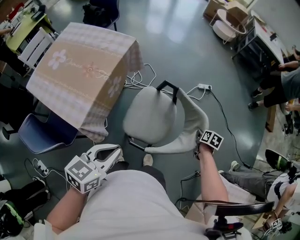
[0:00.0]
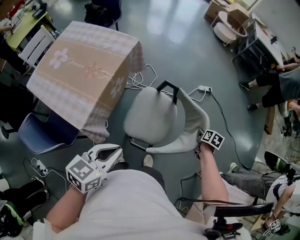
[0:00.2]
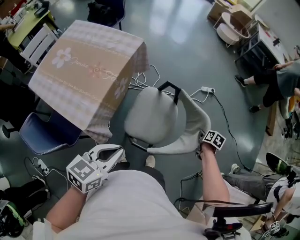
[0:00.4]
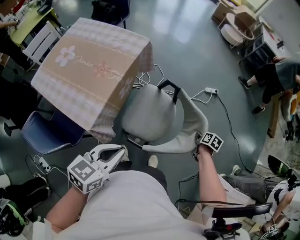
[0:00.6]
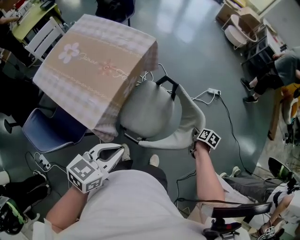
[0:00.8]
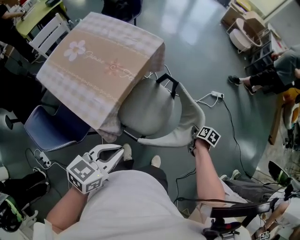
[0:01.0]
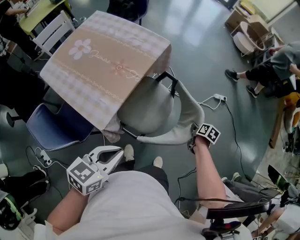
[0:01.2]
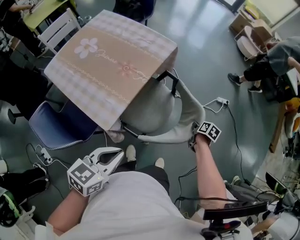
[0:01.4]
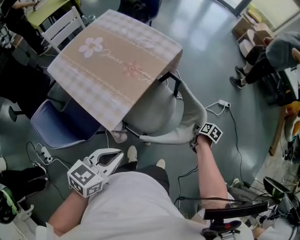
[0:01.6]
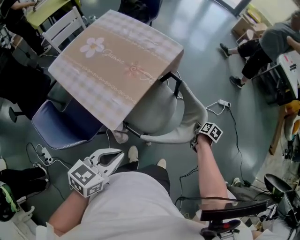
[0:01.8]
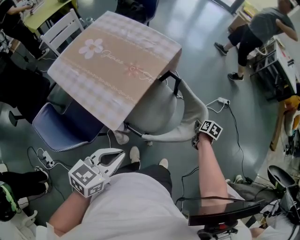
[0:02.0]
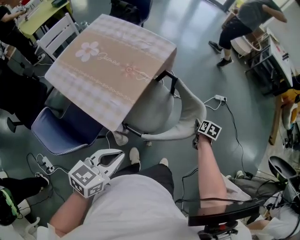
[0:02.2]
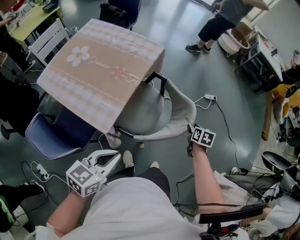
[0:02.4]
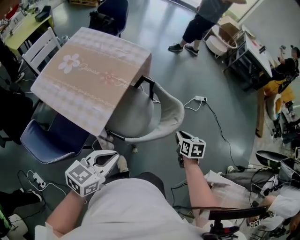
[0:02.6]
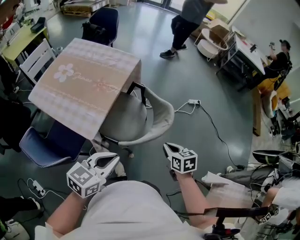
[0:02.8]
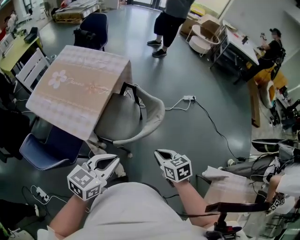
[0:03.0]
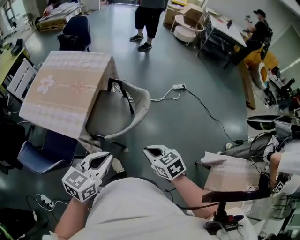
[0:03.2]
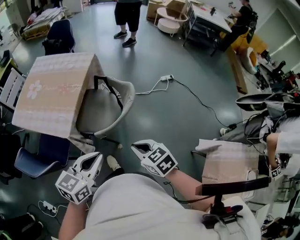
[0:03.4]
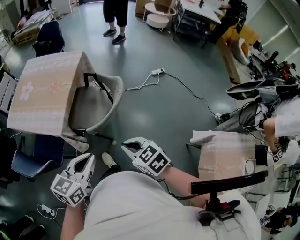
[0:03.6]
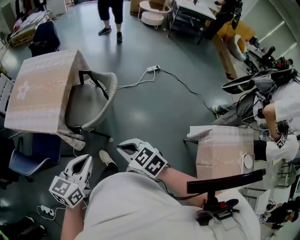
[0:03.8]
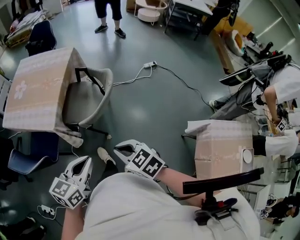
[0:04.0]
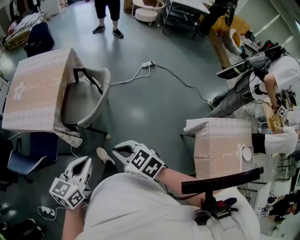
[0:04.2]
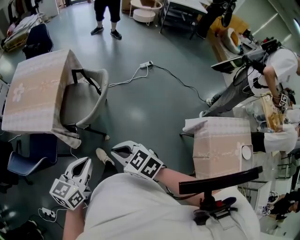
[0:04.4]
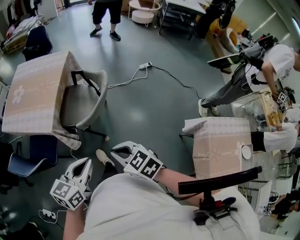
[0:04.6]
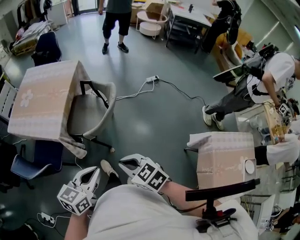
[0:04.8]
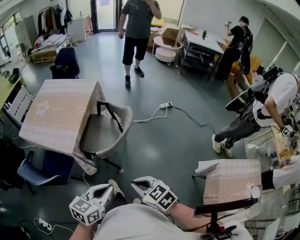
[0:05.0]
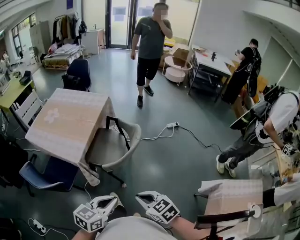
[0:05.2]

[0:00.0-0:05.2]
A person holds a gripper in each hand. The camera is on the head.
0:00.0 to 0:01.8: The grippers both shift to the left by some 25 cm.
0:01.8 to 0:03.4: The left gripper shifts approximately 20 cm to the right and backward, while the right gripper goes about 40 cm backward and upward, twists about 50 degrees counterclockwise, seen from behind, and opens and closes again.
0:03.4 to 0:05.2: The two grippers go about 15 cm backward.

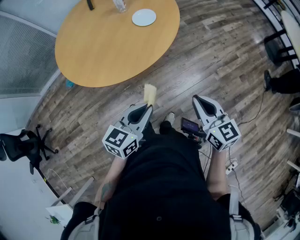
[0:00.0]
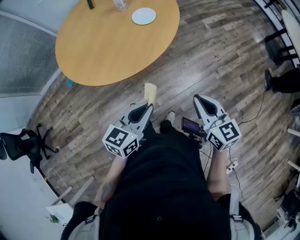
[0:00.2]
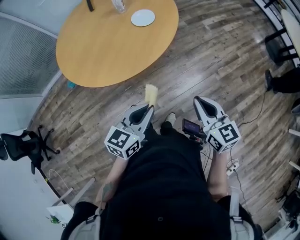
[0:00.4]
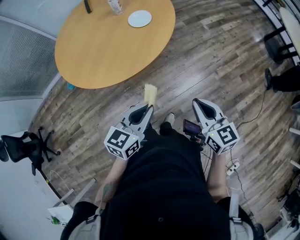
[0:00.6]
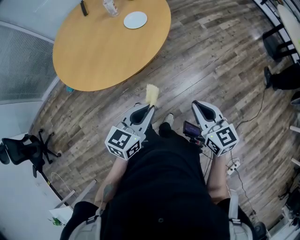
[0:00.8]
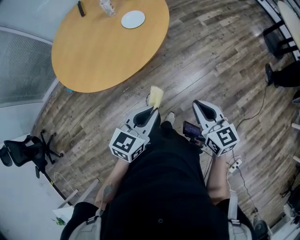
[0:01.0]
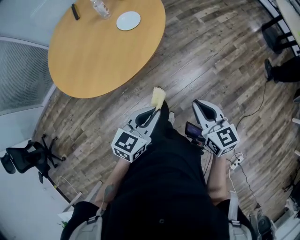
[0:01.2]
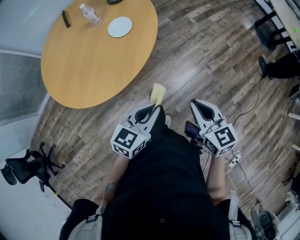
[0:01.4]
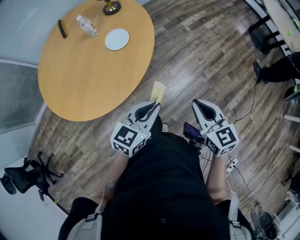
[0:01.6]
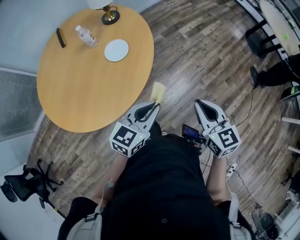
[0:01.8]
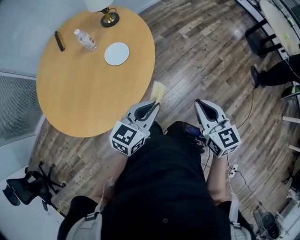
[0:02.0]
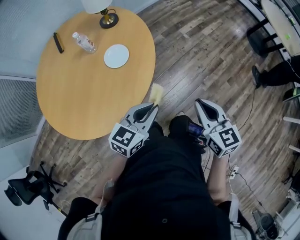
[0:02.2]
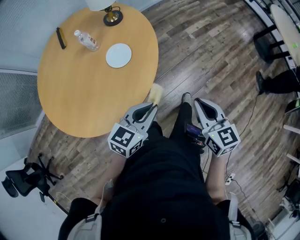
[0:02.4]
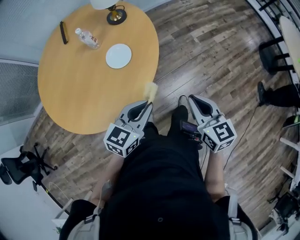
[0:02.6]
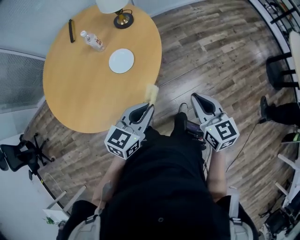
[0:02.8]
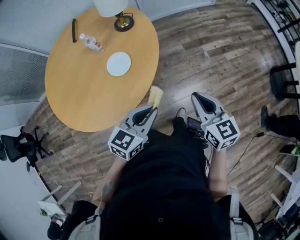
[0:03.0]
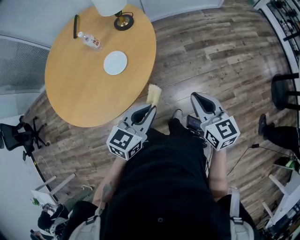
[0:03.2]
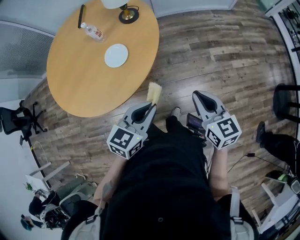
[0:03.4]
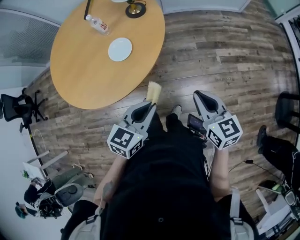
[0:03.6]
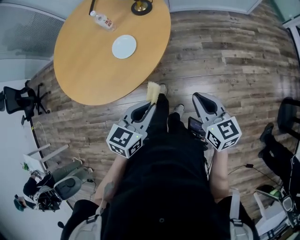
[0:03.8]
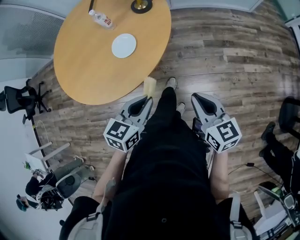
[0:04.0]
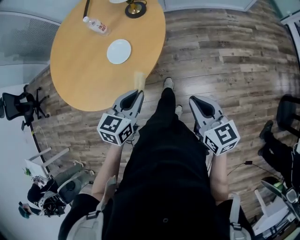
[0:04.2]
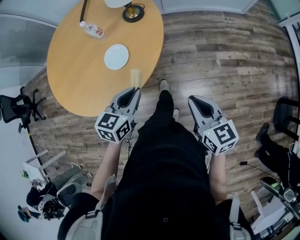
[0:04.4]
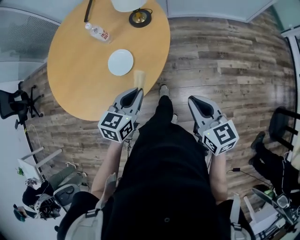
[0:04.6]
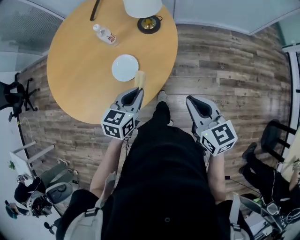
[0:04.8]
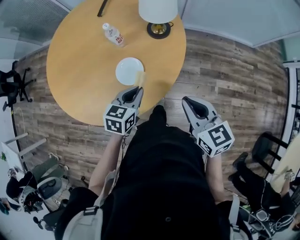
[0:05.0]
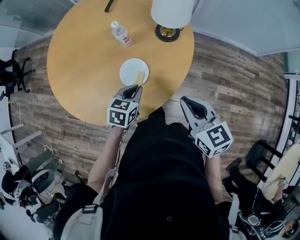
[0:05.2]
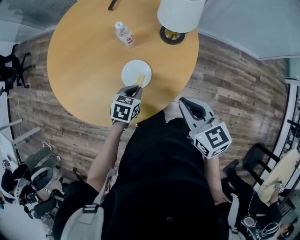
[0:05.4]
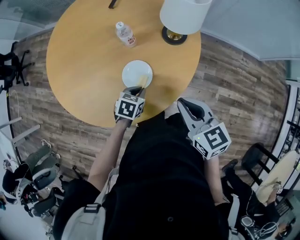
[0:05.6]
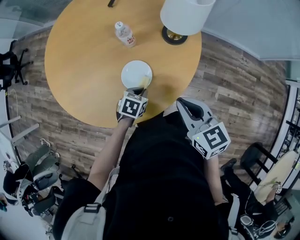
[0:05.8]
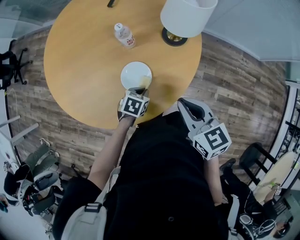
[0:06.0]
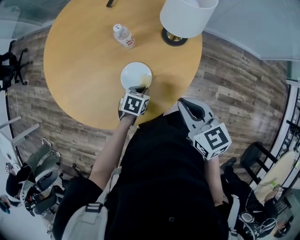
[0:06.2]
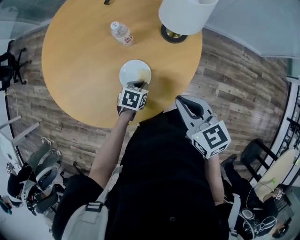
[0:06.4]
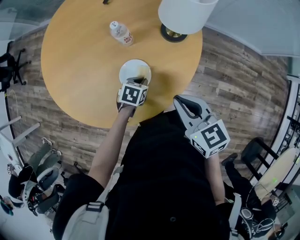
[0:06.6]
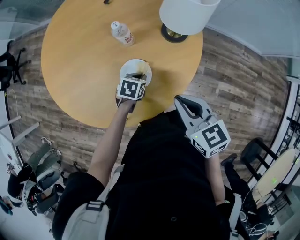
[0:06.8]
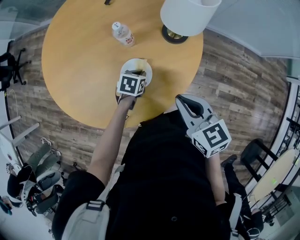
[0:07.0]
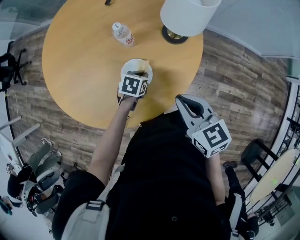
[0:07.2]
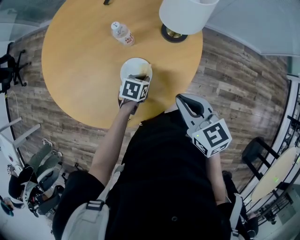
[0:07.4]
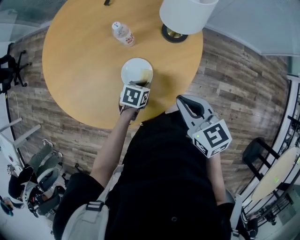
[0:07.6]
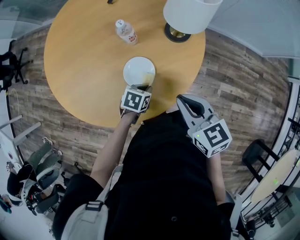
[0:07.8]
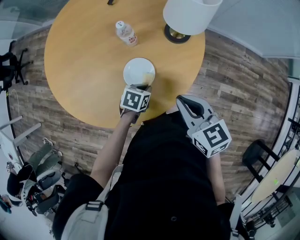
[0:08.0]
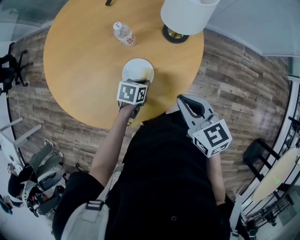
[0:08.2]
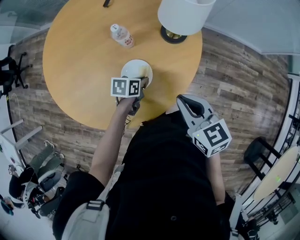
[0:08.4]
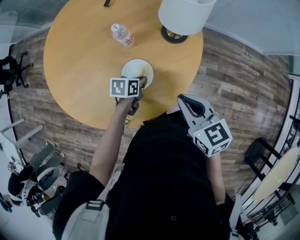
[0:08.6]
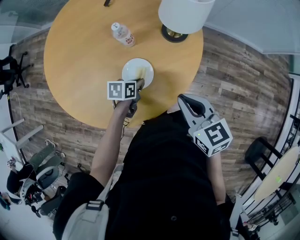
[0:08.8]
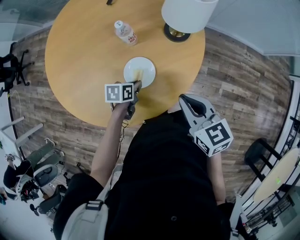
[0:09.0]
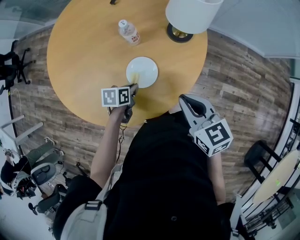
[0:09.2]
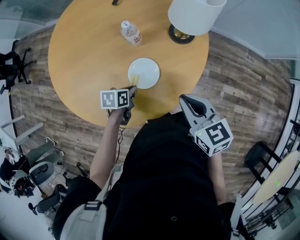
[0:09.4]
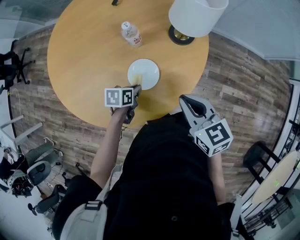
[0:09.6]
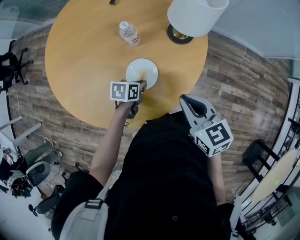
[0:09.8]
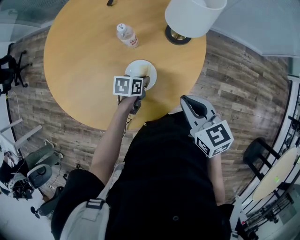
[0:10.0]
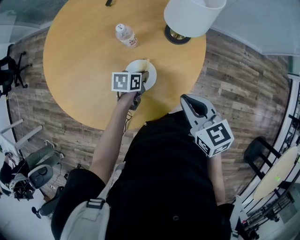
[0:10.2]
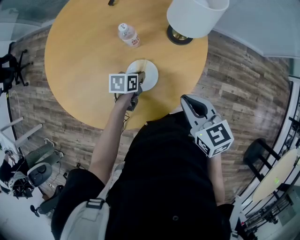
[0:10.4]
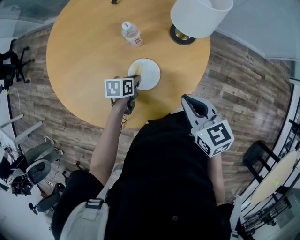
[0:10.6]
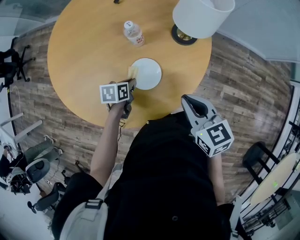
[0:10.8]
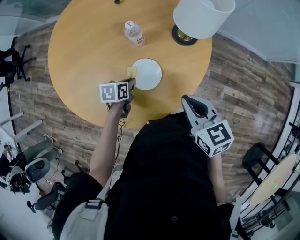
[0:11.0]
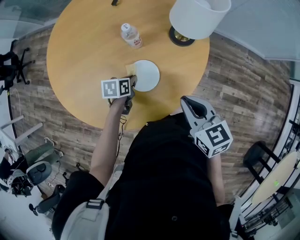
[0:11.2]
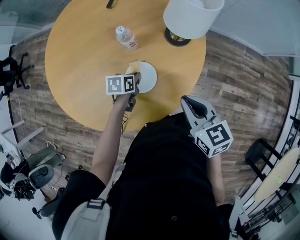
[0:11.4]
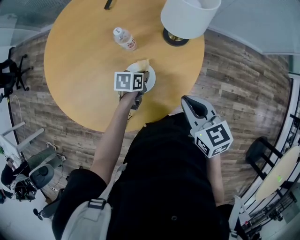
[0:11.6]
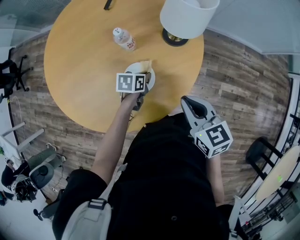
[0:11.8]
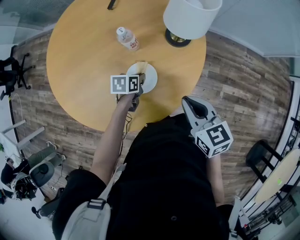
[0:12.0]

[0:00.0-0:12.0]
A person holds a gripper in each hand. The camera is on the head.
0:00.0 to 0:01.6: Both grippers travel together forward and to the right, about 15 cm.
0:01.6 to 0:03.0: The two grippers go roughly 25 cm forward.
0:03.0 to 0:04.4: The right gripper goes approximately 10 cm forward and to the right, and changes its angle by roughly 20 degrees; the left gripper is displaced forward by about 15 cm, and swivels about 30 degrees.
0:04.4 to 0:06.0: The right gripper is displaced forward and to the left by some 30 cm, and swivels some 20 degrees. The left gripper heads downward, forward and to the left, covering approximately 30 cm, and angles its fingers downward, by approximately 30 degrees.
0:06.0 to 0:07.6: The left gripper goes forward and returns, about 10 cm each way.
0:07.6 to 0:09.0: The left gripper shifts about 5 cm to the left.
0:09.0 to 0:10.4: The left gripper travels forward by roughly 5 cm.
0:10.4 to 0:12.0: The left gripper goes to the left and returns, approximately 5 cm each way.

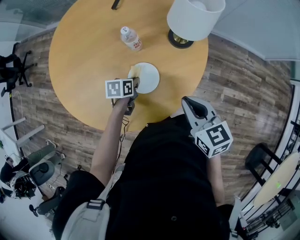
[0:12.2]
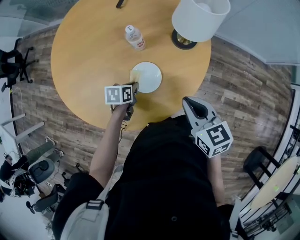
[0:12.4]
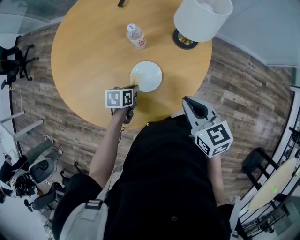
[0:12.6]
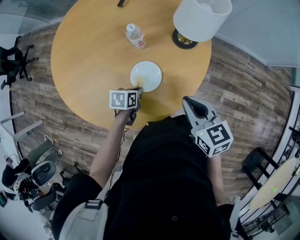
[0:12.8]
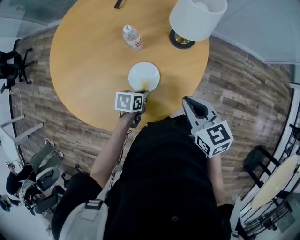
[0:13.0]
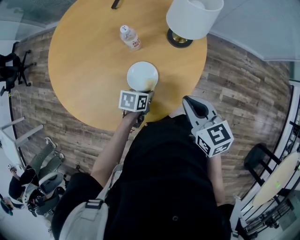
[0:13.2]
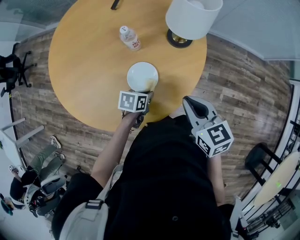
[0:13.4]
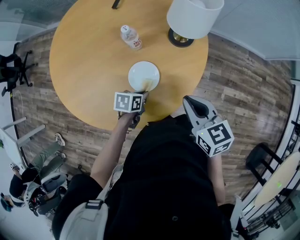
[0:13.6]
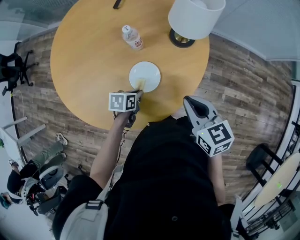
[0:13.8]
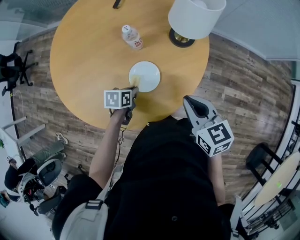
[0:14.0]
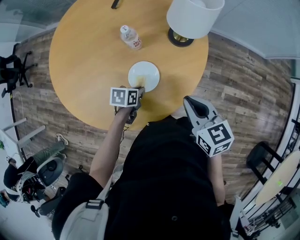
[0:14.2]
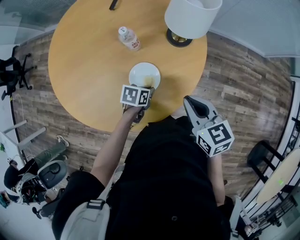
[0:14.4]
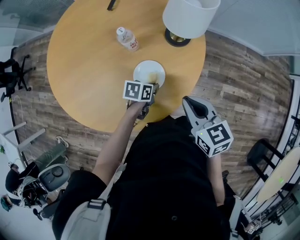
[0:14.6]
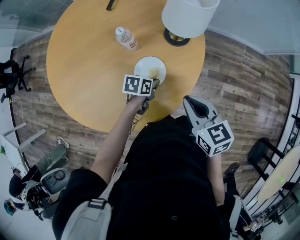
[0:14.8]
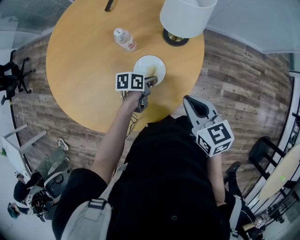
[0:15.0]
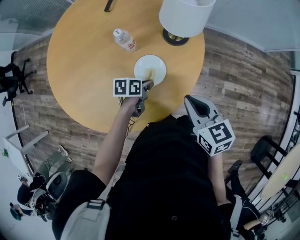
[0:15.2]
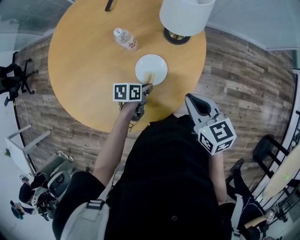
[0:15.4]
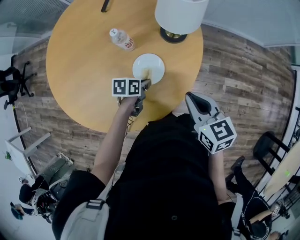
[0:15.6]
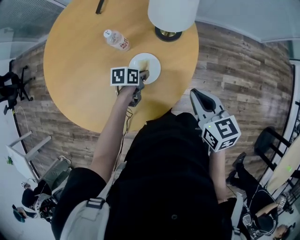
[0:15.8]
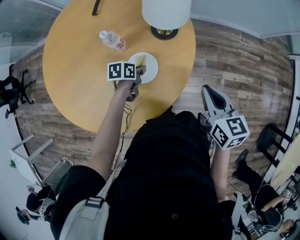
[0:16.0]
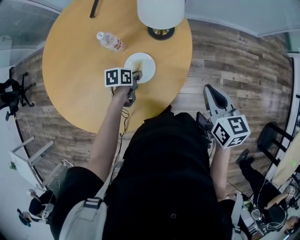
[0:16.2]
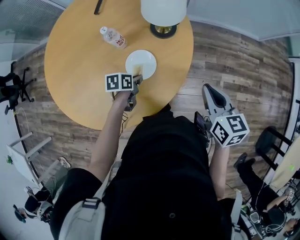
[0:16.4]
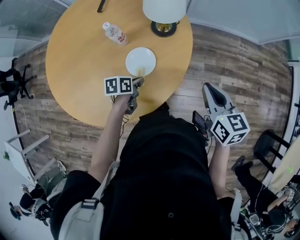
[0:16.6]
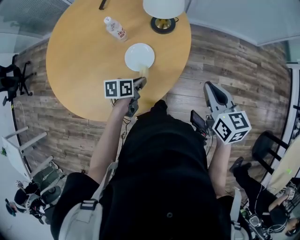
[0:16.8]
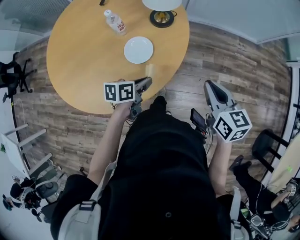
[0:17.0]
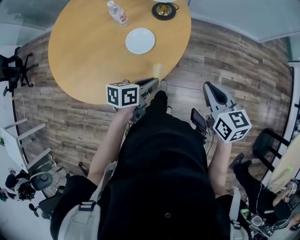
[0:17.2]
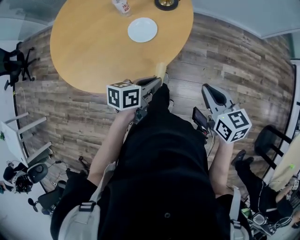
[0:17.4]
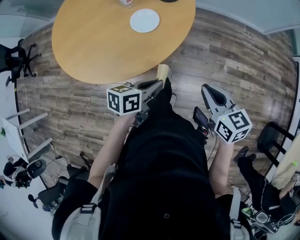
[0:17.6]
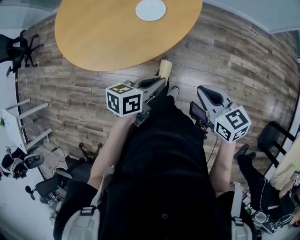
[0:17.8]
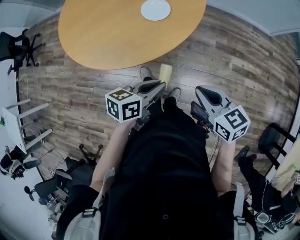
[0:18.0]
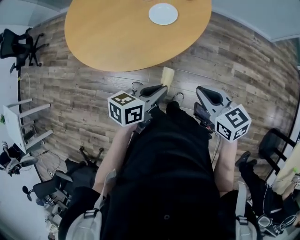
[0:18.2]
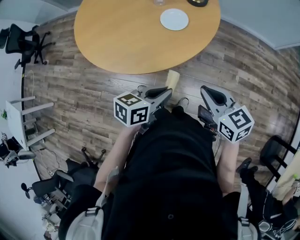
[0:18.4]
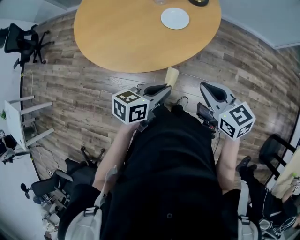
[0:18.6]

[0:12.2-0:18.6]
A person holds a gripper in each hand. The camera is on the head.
0:12.2 to 0:13.8: The left gripper heads backward, covering roughly 5 cm, and travels to the right and back again, roughly 10 cm each way.
0:15.4 to 0:17.0: The right gripper heads to the right, covering approximately 15 cm, while the left gripper travels to the right, upward and backward by about 15 cm.
0:17.0 to 0:18.6: The left gripper travels backward by some 25 cm. Meanwhile the right gripper travels backward and to the left by some 25 cm, and rotates approximately 30 degrees.
